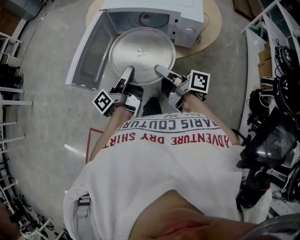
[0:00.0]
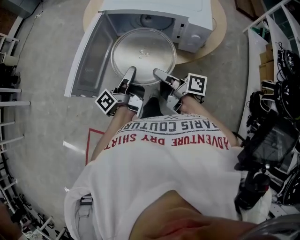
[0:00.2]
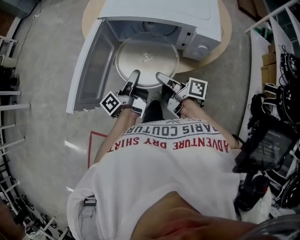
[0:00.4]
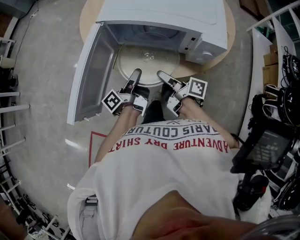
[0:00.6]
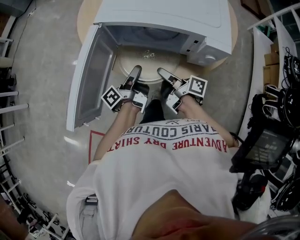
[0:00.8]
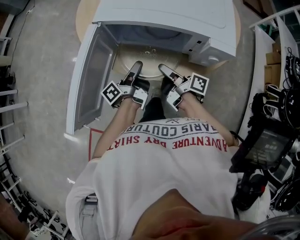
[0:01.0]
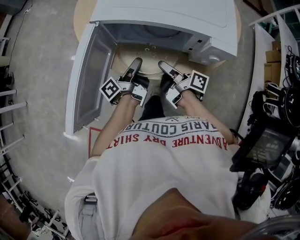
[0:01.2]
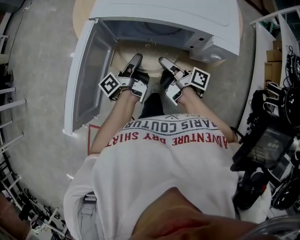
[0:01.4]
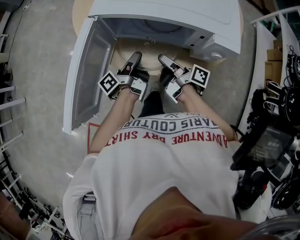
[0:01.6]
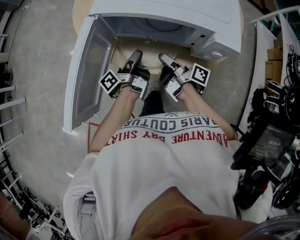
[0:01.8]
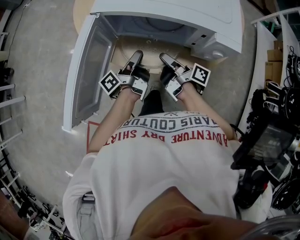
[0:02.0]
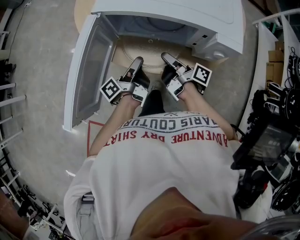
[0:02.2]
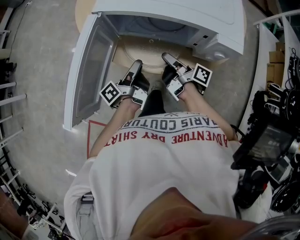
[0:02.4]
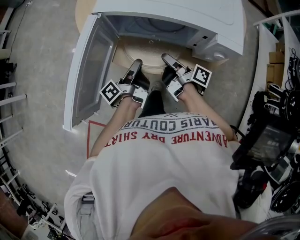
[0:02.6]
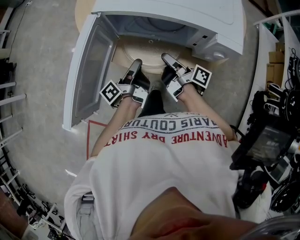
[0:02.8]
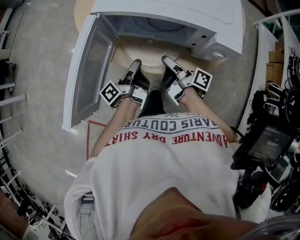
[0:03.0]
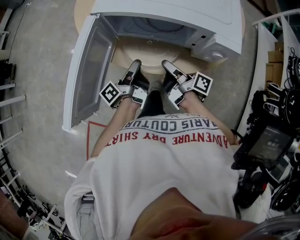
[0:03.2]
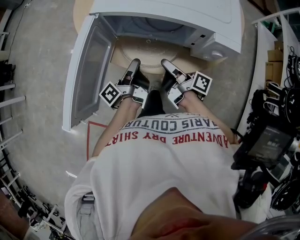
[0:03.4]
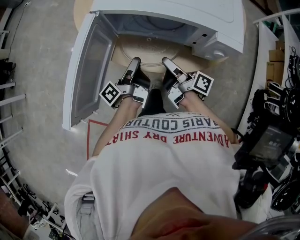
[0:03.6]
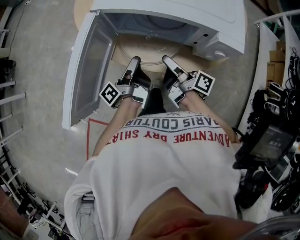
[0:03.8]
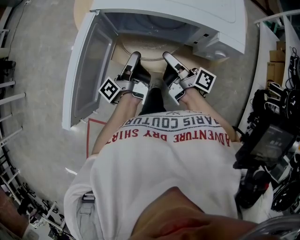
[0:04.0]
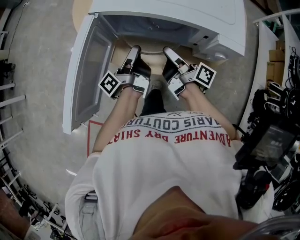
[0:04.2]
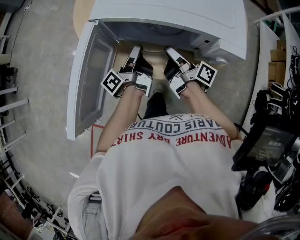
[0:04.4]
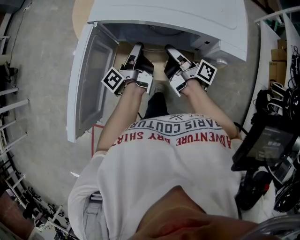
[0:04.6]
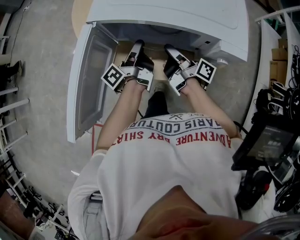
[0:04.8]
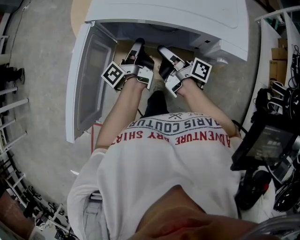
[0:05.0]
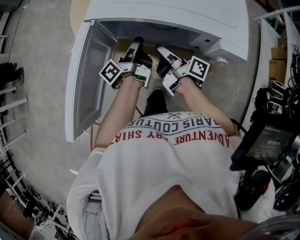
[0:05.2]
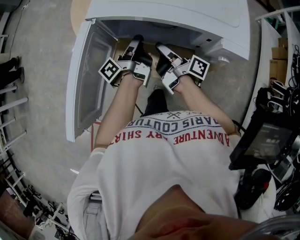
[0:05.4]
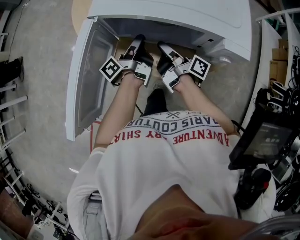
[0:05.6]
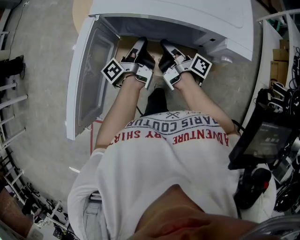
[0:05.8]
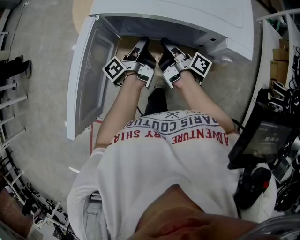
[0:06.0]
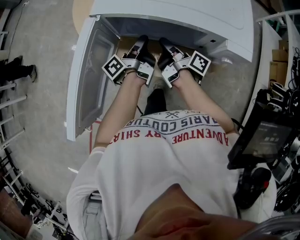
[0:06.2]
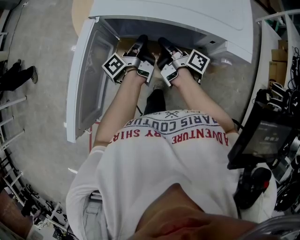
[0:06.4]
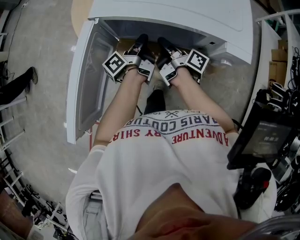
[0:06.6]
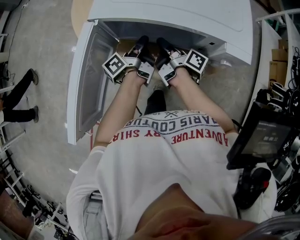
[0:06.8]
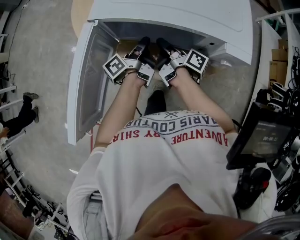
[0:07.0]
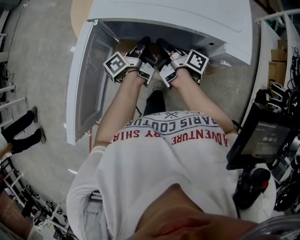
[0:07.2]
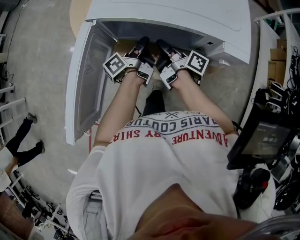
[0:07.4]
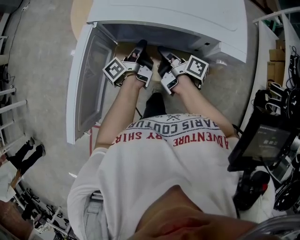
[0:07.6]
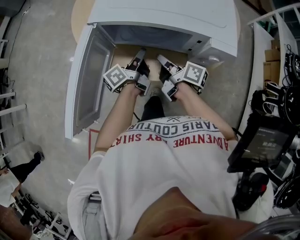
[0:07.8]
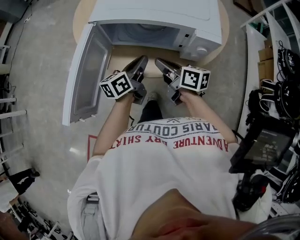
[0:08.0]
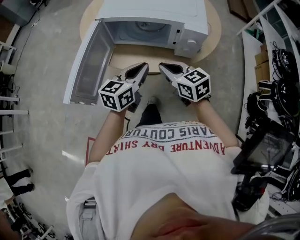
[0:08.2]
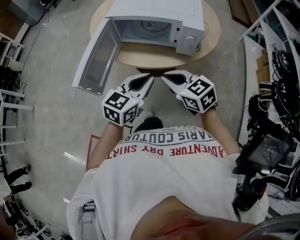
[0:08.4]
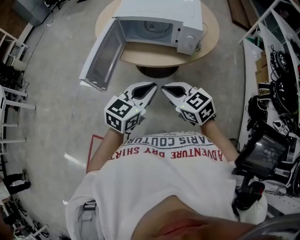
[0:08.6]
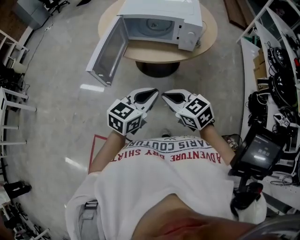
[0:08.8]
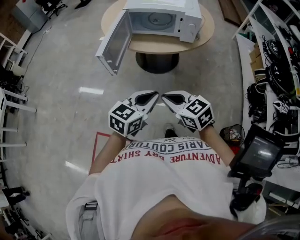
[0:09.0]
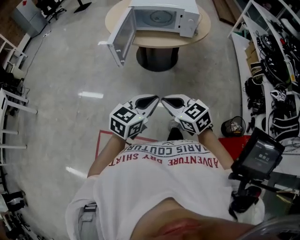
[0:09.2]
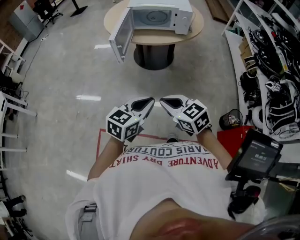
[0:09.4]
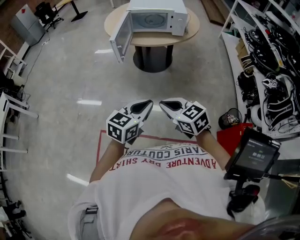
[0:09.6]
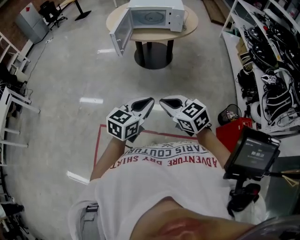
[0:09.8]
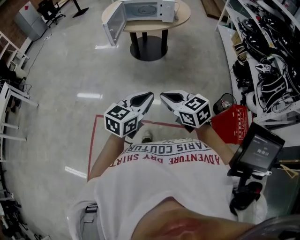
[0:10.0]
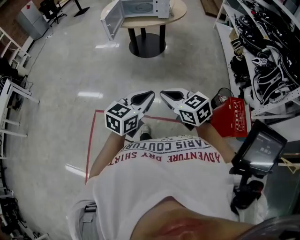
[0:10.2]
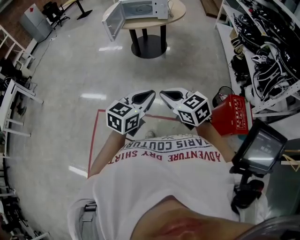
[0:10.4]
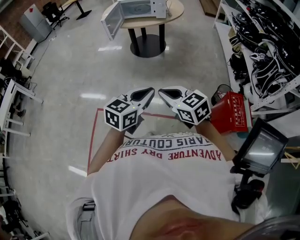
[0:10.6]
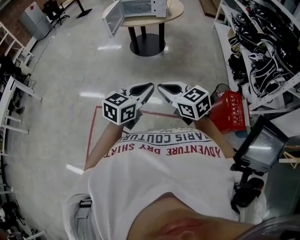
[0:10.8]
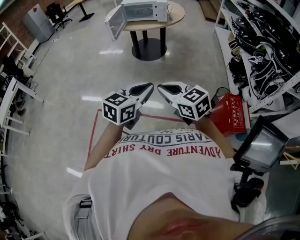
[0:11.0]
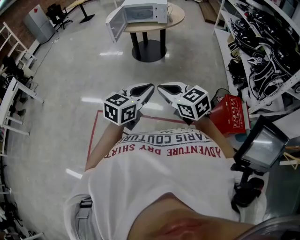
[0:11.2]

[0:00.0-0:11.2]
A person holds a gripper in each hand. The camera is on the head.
0:00.0 to 0:01.6: The right gripper moves about 25 cm, and turns by roughly 20 degrees.
0:03.2 to 0:04.8: The right gripper shifts by some 10 cm.
0:06.4 to 0:08.0: The right gripper ends up approximately 15 cm from where it was, and rolls counterclockwise, seen from behind, by roughly 40 degrees.
0:08.0 to 0:09.6: The right gripper changes place by approximately 70 cm, and rolls counterclockwise, seen from behind, by some 40 degrees.
0:09.6 to 0:11.2: The right gripper ends up roughly 40 cm from where it was.

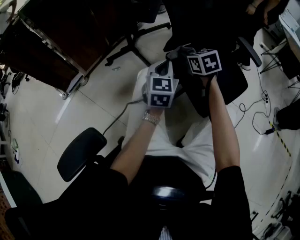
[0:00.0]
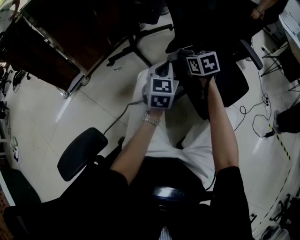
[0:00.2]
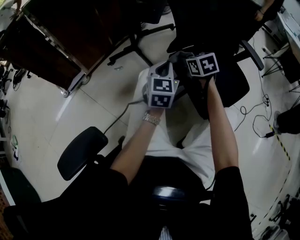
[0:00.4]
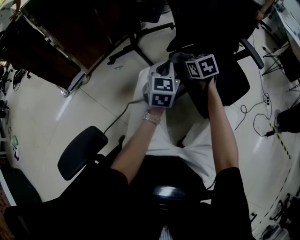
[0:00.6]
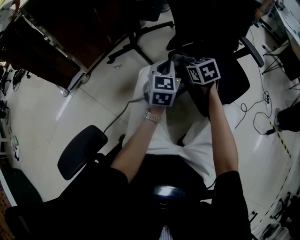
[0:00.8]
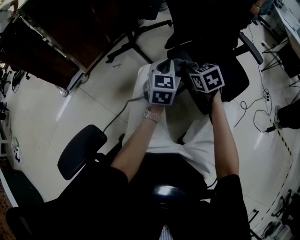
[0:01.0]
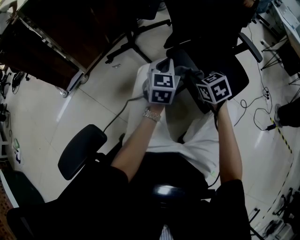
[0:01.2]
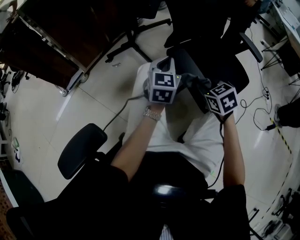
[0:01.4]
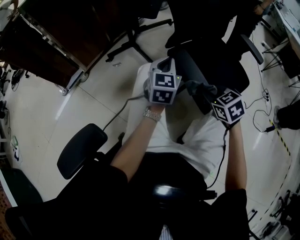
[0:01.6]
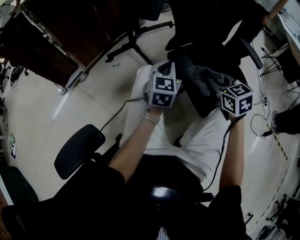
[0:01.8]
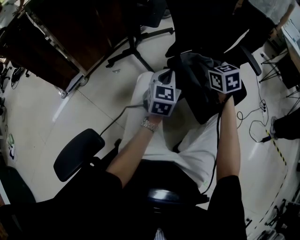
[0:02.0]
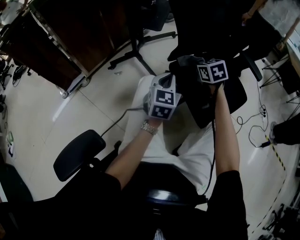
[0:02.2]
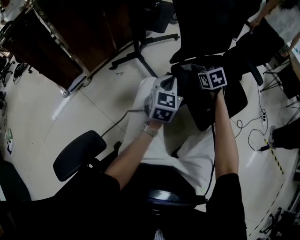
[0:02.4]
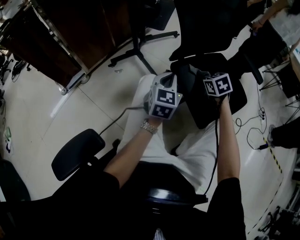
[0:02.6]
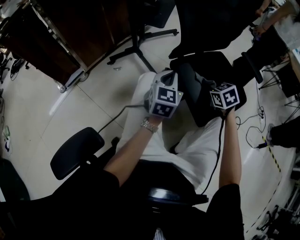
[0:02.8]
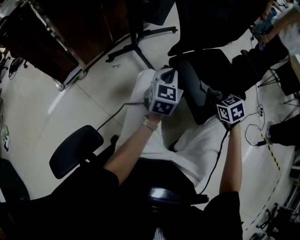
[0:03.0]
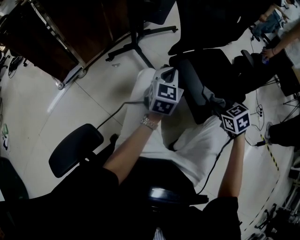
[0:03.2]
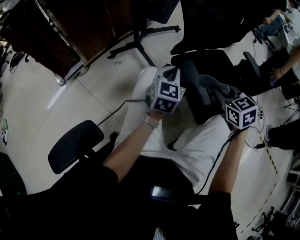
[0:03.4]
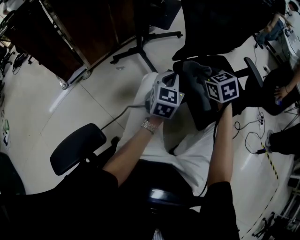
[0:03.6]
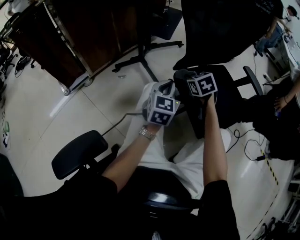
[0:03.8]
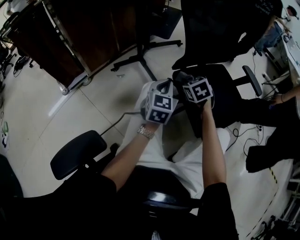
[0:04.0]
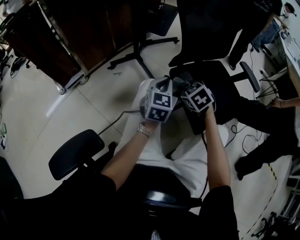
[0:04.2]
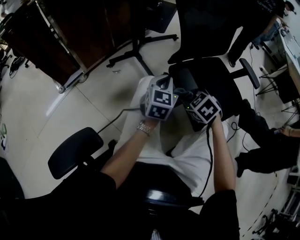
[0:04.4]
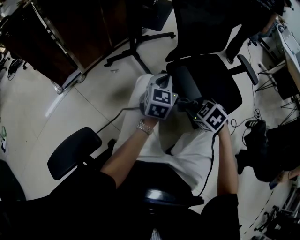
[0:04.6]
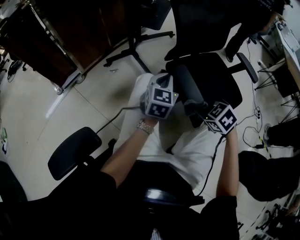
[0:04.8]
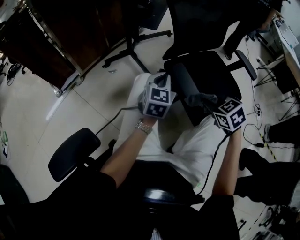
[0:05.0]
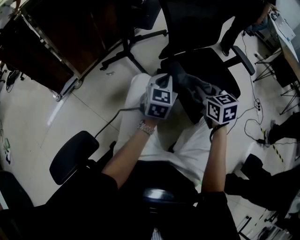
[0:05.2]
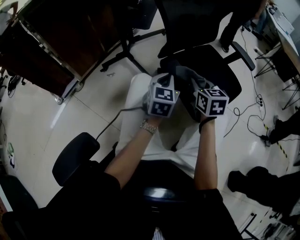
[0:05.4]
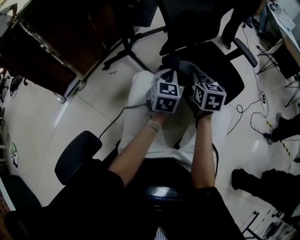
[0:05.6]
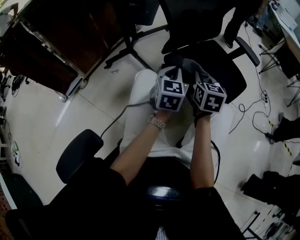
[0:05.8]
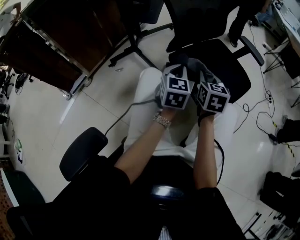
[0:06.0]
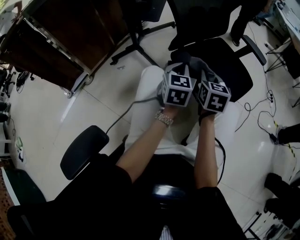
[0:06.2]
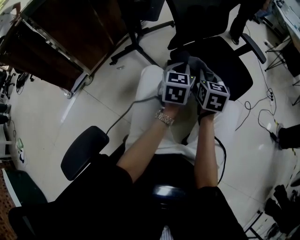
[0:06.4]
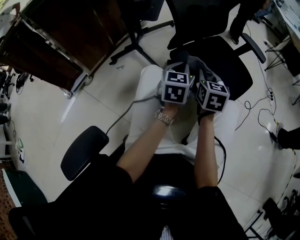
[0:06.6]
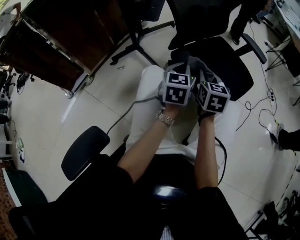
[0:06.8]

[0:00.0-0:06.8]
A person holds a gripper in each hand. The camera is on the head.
0:00.0 to 0:01.4: The right gripper travels backward by about 15 cm.
0:01.4 to 0:02.8: The right gripper heads forward and to the right, covering some 10 cm.
0:02.8 to 0:04.0: The right gripper travels to the left by some 10 cm, and goes backward and returns, roughly 10 cm each way.
0:04.0 to 0:05.4: The left gripper is displaced to the right by some 5 cm; the right gripper travels backward, to the right and upward by approximately 15 cm, and rotates approximately 40 degrees.
0:05.4 to 0:06.8: The grippers stay close to where they were, moving slightly.

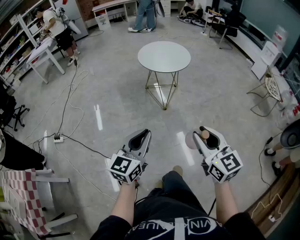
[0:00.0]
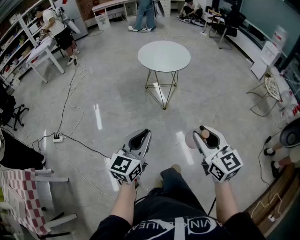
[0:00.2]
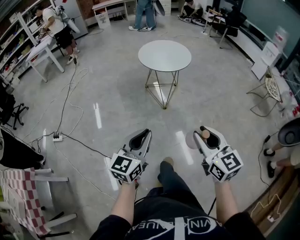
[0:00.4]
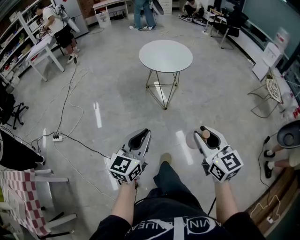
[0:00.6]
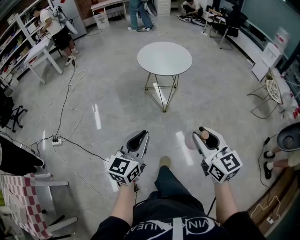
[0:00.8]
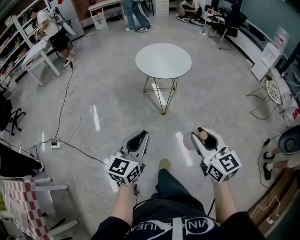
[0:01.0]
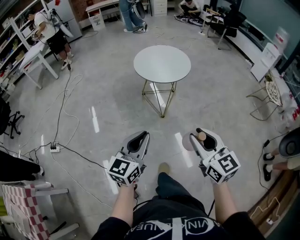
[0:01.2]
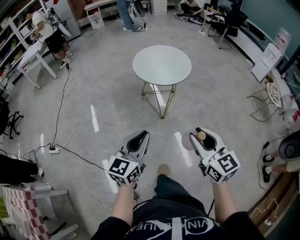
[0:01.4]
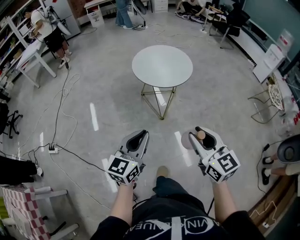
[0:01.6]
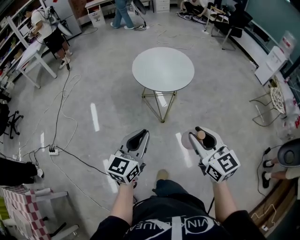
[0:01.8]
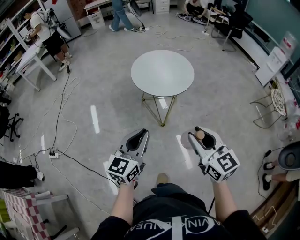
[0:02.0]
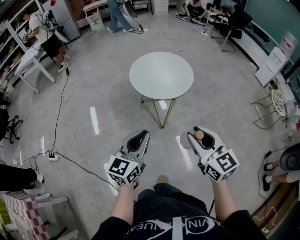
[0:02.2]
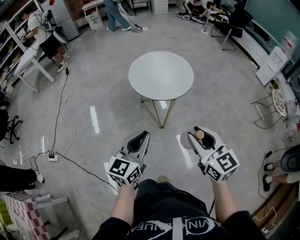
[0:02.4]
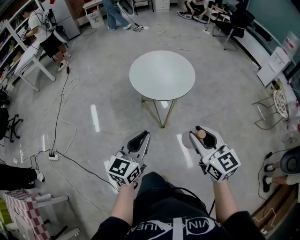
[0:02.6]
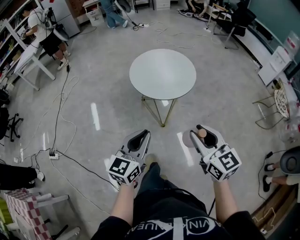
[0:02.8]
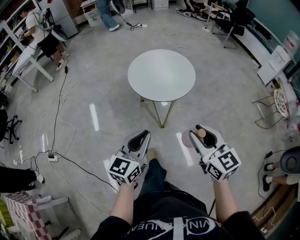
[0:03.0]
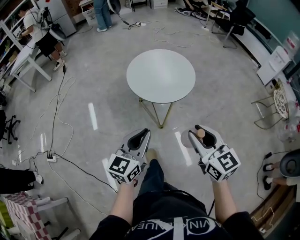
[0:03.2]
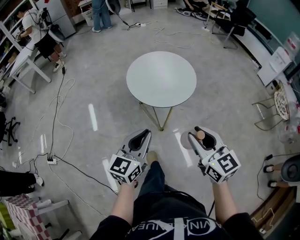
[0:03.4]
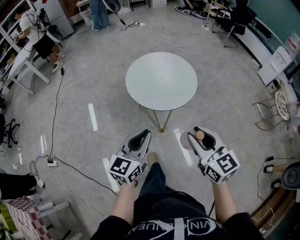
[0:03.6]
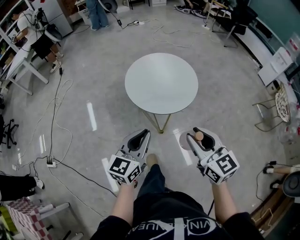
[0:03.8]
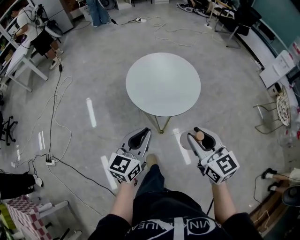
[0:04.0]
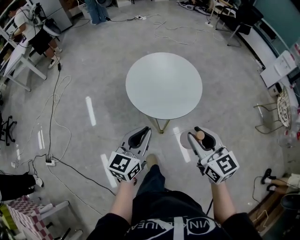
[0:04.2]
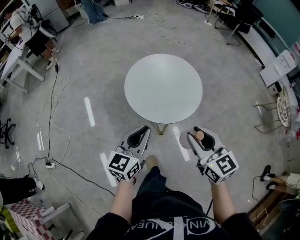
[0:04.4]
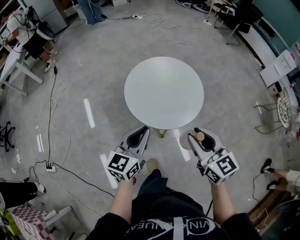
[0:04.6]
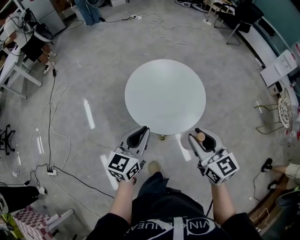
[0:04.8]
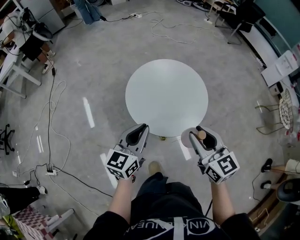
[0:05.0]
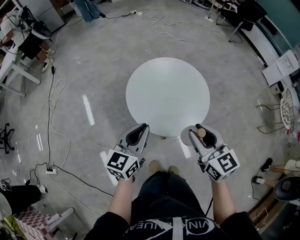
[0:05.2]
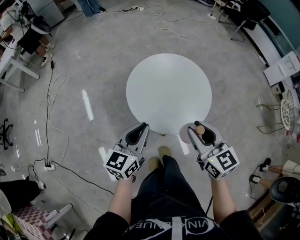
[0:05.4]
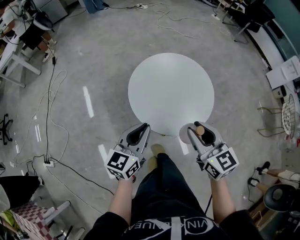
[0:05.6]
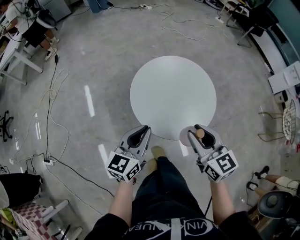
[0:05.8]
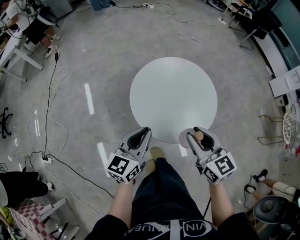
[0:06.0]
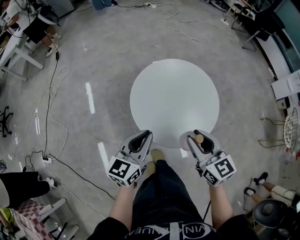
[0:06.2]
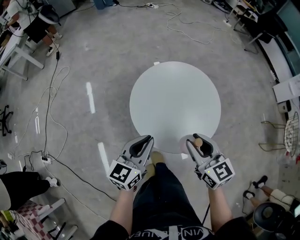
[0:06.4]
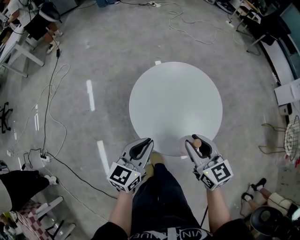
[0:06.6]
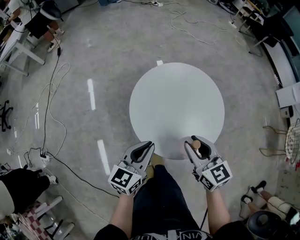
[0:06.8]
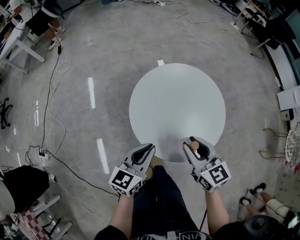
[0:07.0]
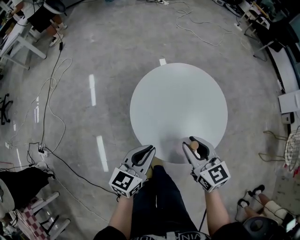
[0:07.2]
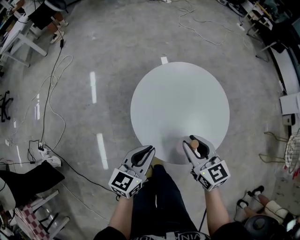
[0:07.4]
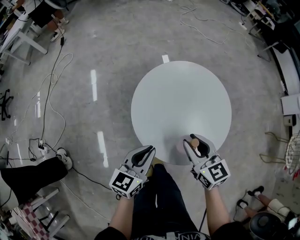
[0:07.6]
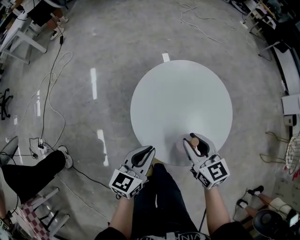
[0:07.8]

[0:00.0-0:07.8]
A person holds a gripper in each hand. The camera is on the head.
0:00.0 to 0:01.6: The grippers both shift forward by roughly 20 cm.
0:01.6 to 0:03.2: The two grippers go approximately 15 cm forward.
0:03.2 to 0:04.6: Both grippers travel together forward, approximately 20 cm.
0:04.6 to 0:06.2: The grippers both shift forward and downward by about 10 cm.
0:06.2 to 0:07.8: The right gripper goes about 15 cm downward and forward. The left gripper moves downward, roughly 10 cm.
